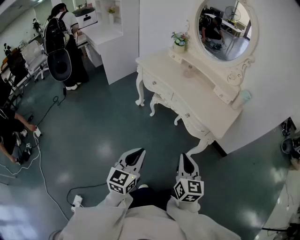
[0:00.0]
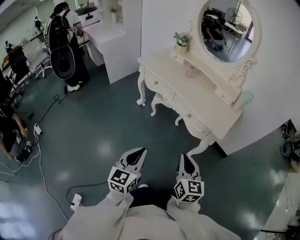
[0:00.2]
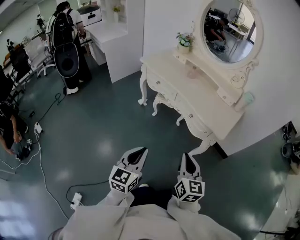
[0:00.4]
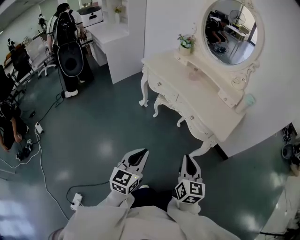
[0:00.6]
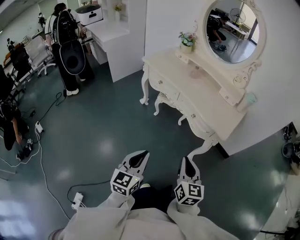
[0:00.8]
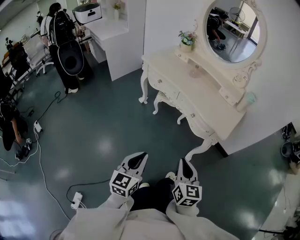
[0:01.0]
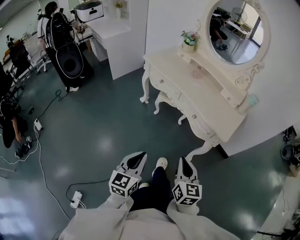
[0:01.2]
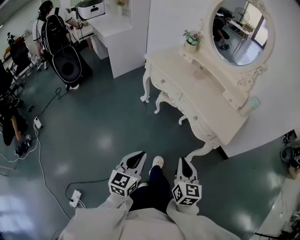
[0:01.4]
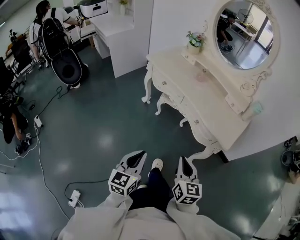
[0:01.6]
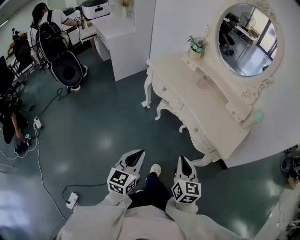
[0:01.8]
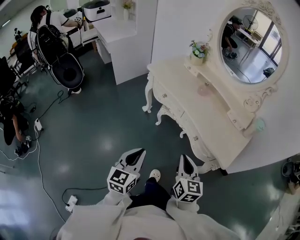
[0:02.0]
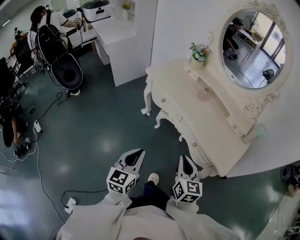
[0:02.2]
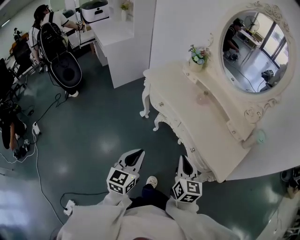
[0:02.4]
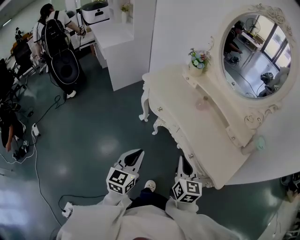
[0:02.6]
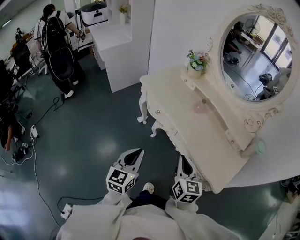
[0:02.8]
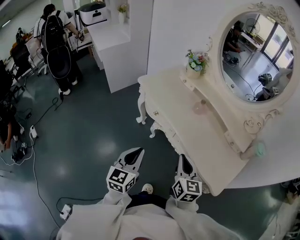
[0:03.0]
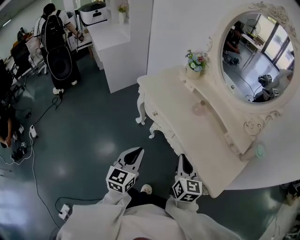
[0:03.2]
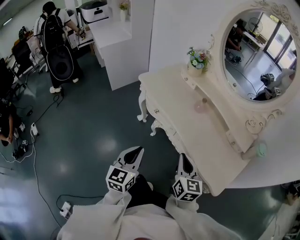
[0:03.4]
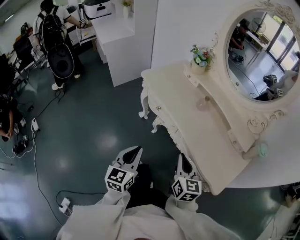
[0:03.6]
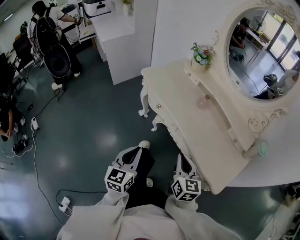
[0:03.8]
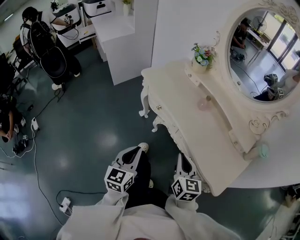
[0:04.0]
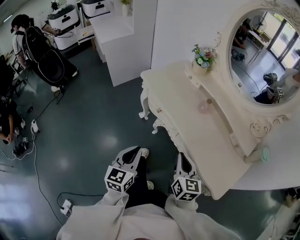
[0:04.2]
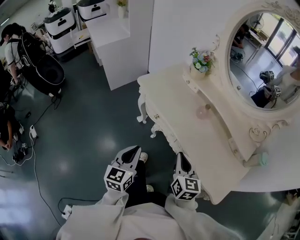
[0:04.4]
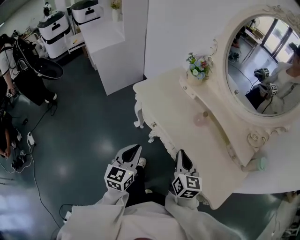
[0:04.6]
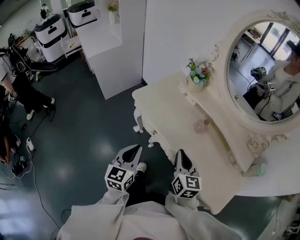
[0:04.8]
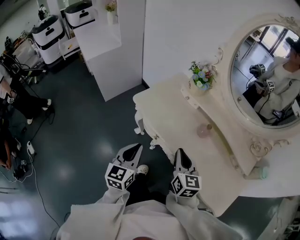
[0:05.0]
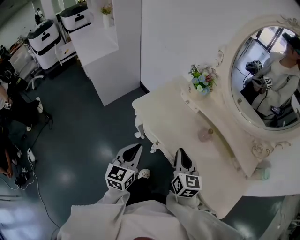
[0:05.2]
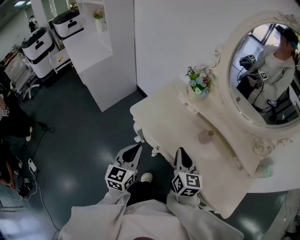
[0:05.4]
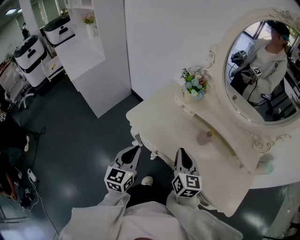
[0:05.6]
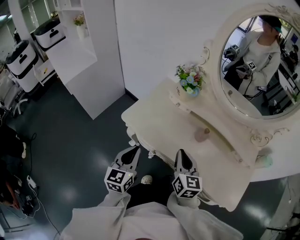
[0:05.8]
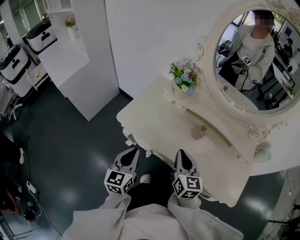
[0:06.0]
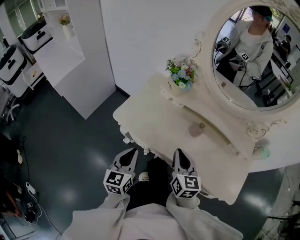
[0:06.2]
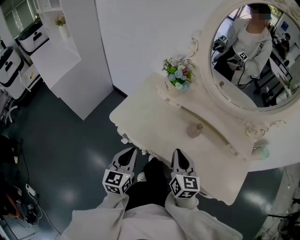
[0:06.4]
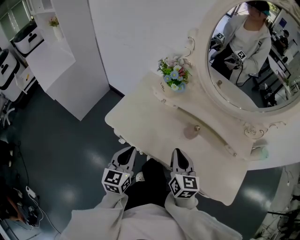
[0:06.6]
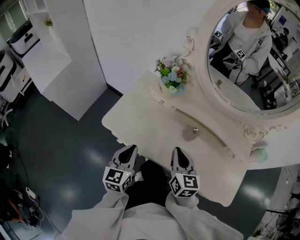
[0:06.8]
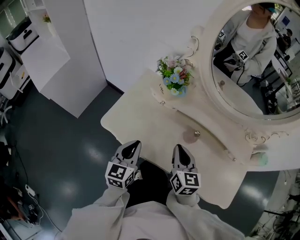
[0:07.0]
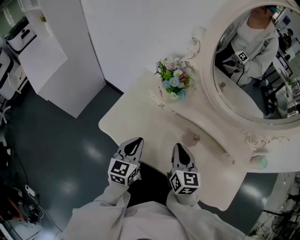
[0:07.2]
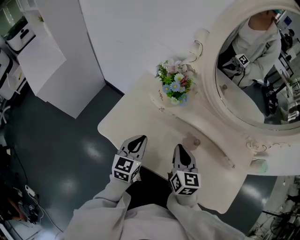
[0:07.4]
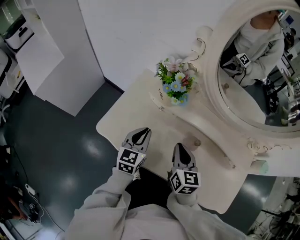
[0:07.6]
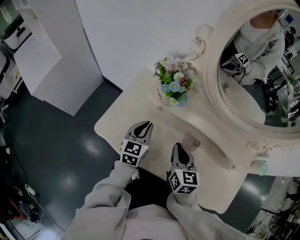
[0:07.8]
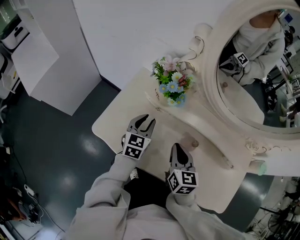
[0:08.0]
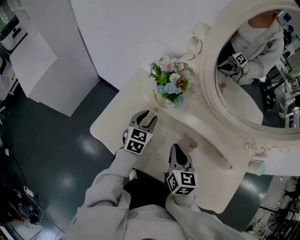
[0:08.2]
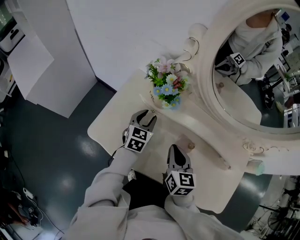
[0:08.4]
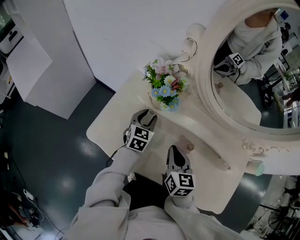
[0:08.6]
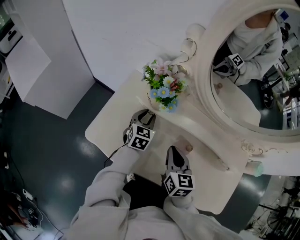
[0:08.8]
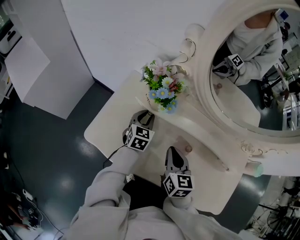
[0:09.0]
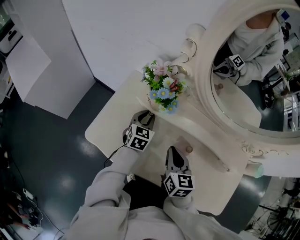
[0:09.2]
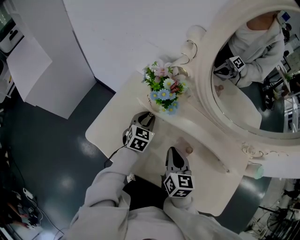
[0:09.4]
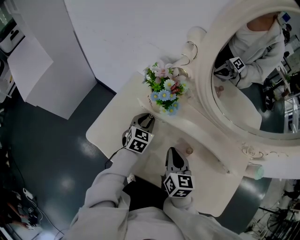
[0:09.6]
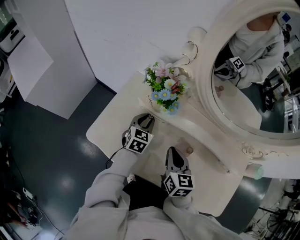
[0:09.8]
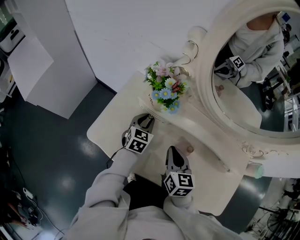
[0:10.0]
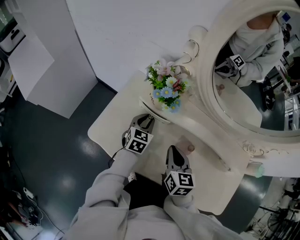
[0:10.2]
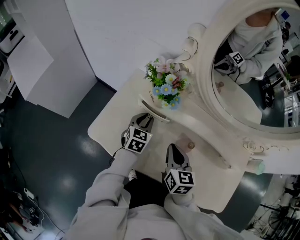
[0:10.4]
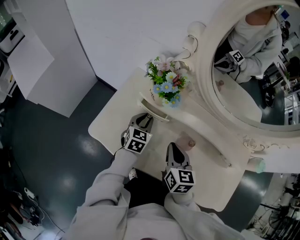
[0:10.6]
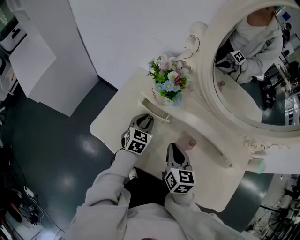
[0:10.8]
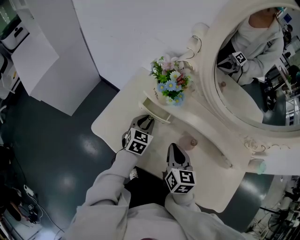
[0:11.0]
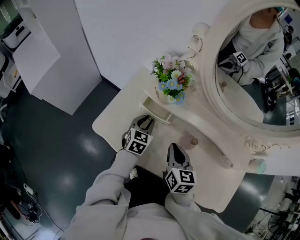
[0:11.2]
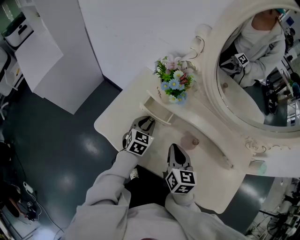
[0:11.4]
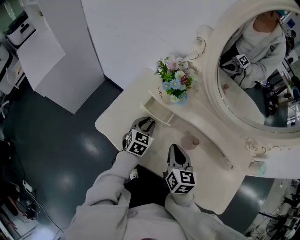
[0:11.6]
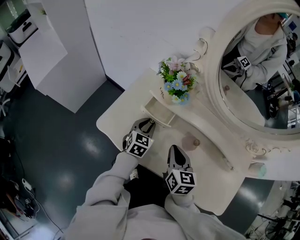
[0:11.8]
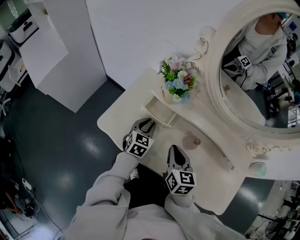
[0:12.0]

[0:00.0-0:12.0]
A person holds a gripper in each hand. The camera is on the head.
0:00.0 to 0:01.6: The right gripper moves some 5 cm; the left gripper moves roughly 5 cm.
0:01.6 to 0:03.0: The two grippers go about 25 cm forward.
0:03.0 to 0:04.4: Both grippers travel together forward, roughly 5 cm.
0:04.4 to 0:06.0: The grippers both shift forward by approximately 20 cm.
0:06.0 to 0:07.6: The right gripper shifts about 15 cm forward. The left gripper shifts some 20 cm forward.
0:07.6 to 0:09.0: The left gripper travels forward and downward by roughly 15 cm.
0:09.0 to 0:10.4: There are only small adjustments of the grippers.
0:10.4 to 0:12.0: The left gripper moves backward, some 5 cm.

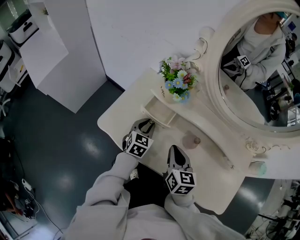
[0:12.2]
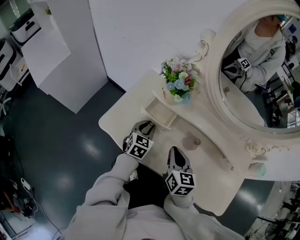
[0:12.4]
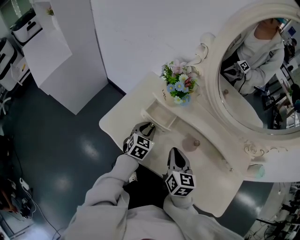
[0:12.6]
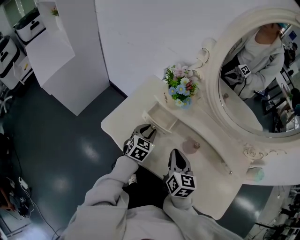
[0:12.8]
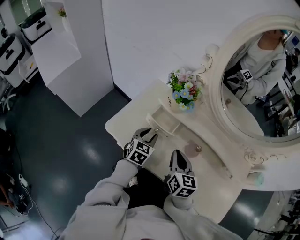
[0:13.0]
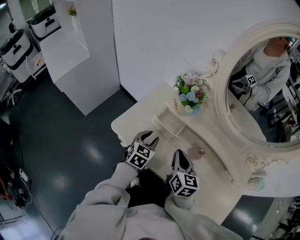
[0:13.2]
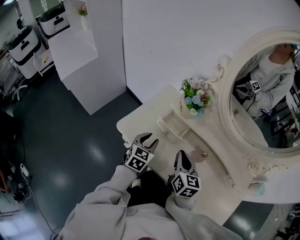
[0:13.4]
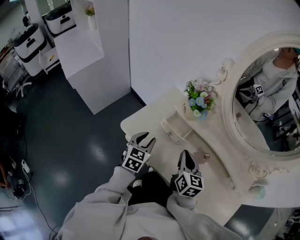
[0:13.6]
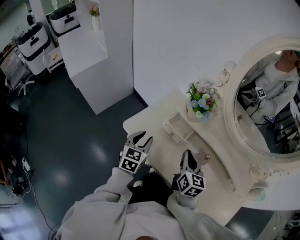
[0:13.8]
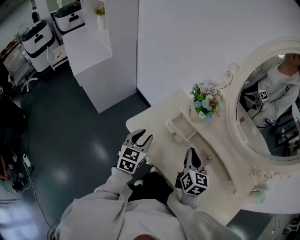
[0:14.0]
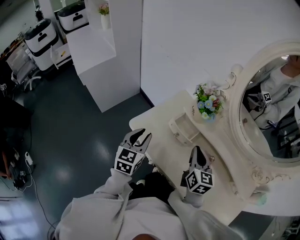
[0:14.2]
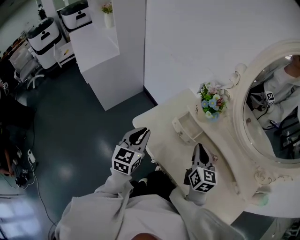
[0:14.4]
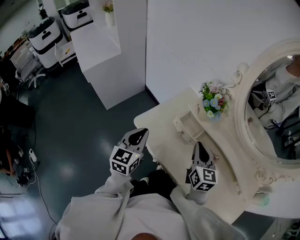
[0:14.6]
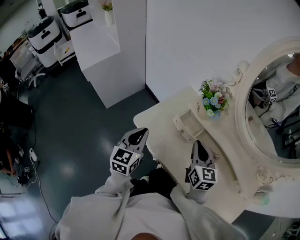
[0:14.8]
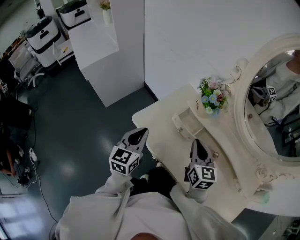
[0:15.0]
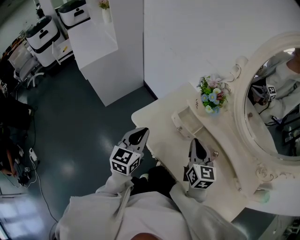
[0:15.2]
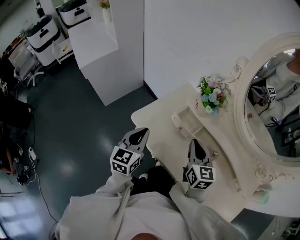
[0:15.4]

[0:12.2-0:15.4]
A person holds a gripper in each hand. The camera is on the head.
0:12.2 to 0:13.8: The left gripper shifts roughly 15 cm to the left, upward and backward.
0:13.8 to 0:15.4: The left gripper shifts roughly 5 cm upward, and closes.

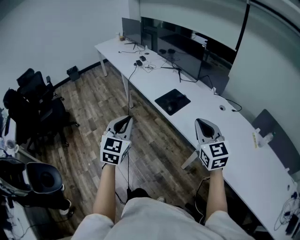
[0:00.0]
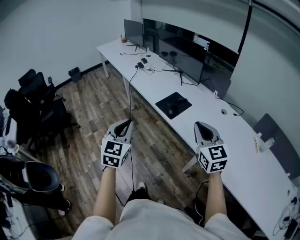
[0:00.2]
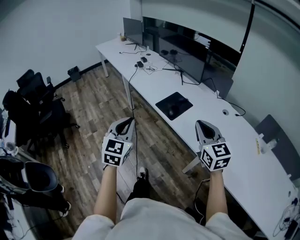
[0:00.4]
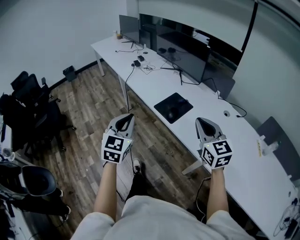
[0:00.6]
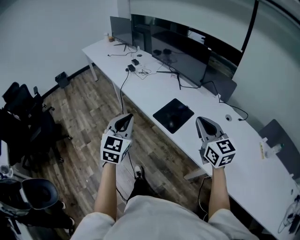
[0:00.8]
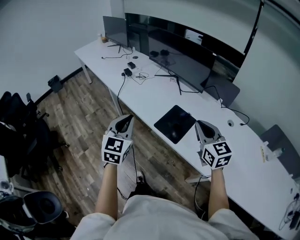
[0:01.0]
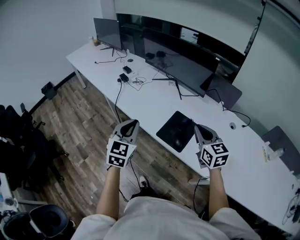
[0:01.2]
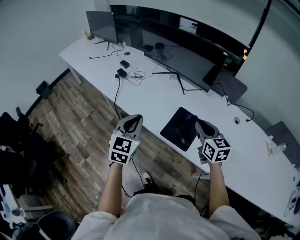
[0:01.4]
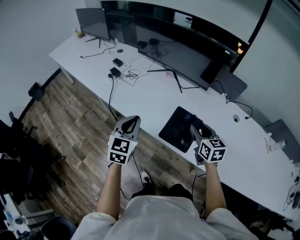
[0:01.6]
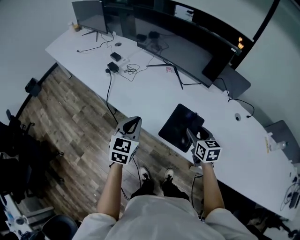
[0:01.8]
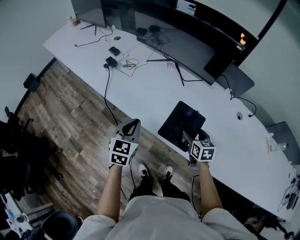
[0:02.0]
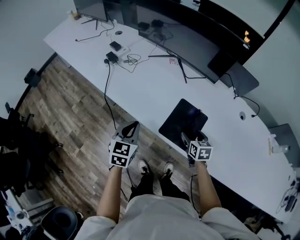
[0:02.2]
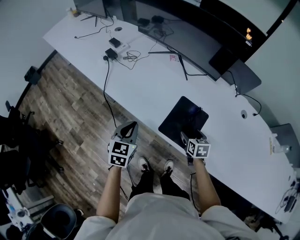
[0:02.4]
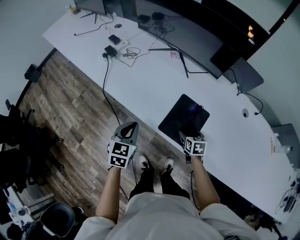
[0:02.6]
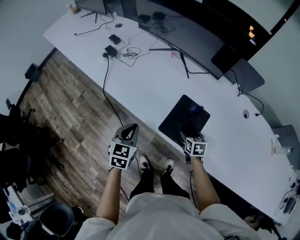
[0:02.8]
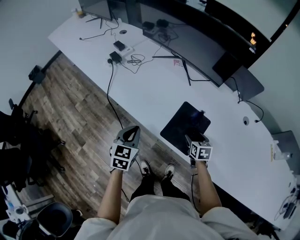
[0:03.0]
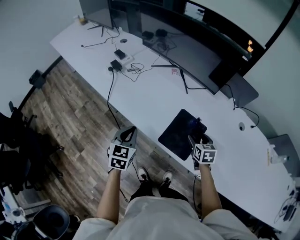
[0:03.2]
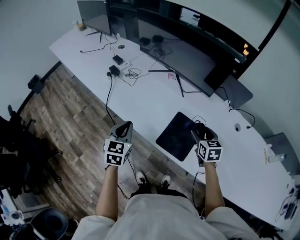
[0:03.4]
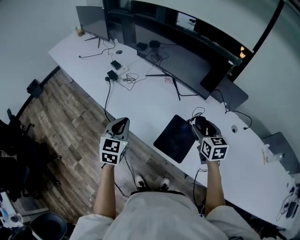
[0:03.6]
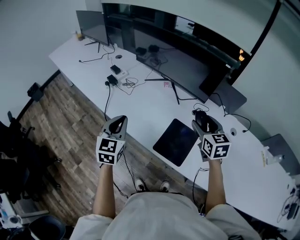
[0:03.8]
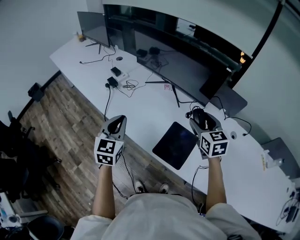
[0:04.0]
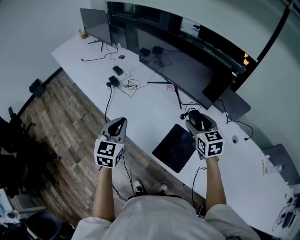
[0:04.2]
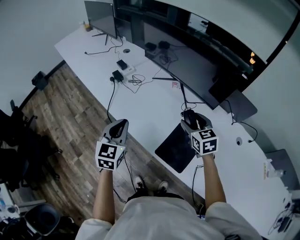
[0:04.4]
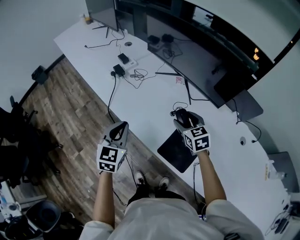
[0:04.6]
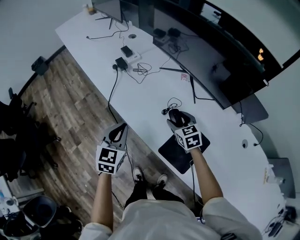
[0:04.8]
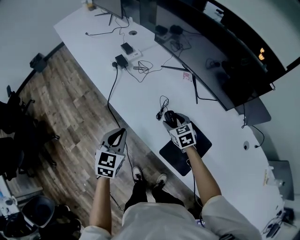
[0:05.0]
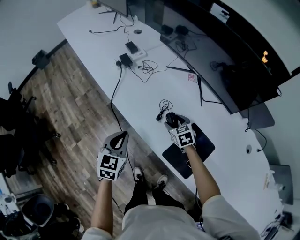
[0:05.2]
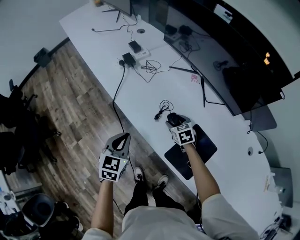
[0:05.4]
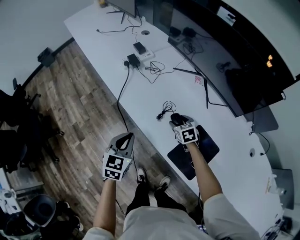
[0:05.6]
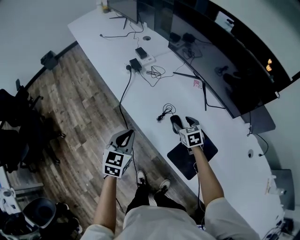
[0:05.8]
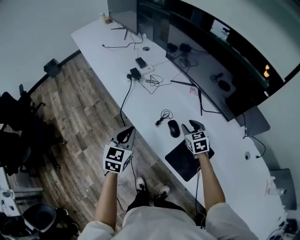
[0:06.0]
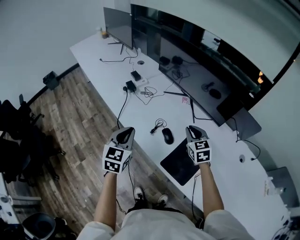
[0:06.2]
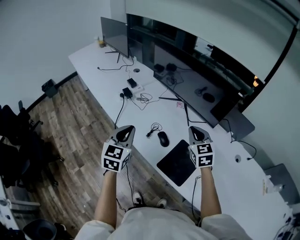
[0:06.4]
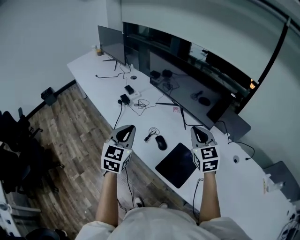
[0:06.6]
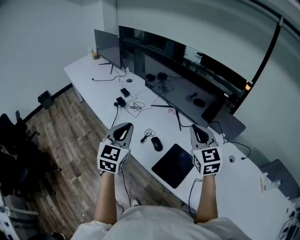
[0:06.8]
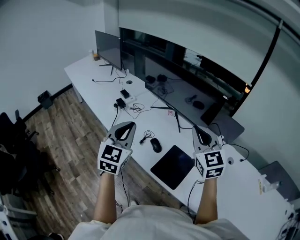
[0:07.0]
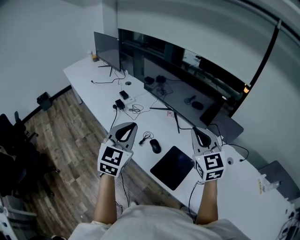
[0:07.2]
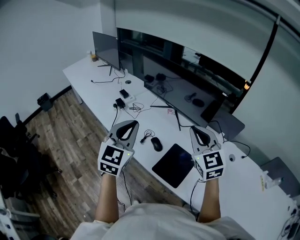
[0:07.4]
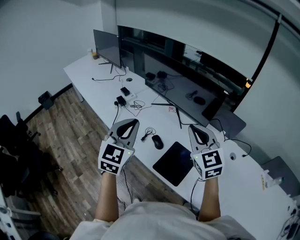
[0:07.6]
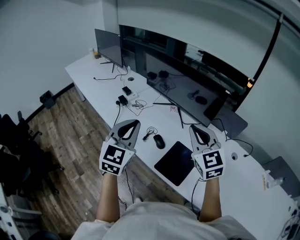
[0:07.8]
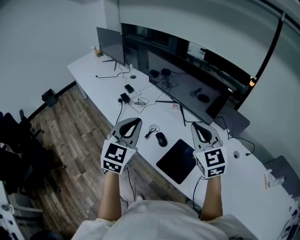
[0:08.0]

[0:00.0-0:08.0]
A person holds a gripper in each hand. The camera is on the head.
0:00.0 to 0:01.6: Both grippers are carried forward, approximately 50 cm. The left gripper swivels roughly 20 degrees. The right gripper travels downward by some 20 cm, changes its angle by some 40 degrees, and opens its fingers.
0:01.6 to 0:03.2: Both grippers move downward, roughly 15 cm. The right gripper opens up.
0:03.2 to 0:04.8: The left gripper goes some 5 cm forward, and travels upward and back again, approximately 15 cm each way, while the right gripper moves to the left and forward, some 20 cm, goes upward and returns, about 20 cm each way, and turns by roughly 30 degrees.
0:04.8 to 0:06.4: The right gripper shifts roughly 20 cm upward, changes its angle by about 20 degrees, and closes. The left gripper goes roughly 10 cm upward.
0:06.4 to 0:08.0: The right gripper travels upward and backward by about 15 cm. The left gripper is displaced upward and to the right by roughly 15 cm.
